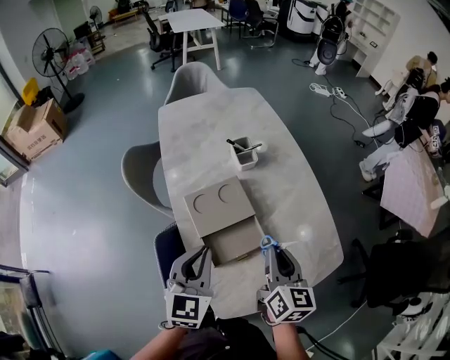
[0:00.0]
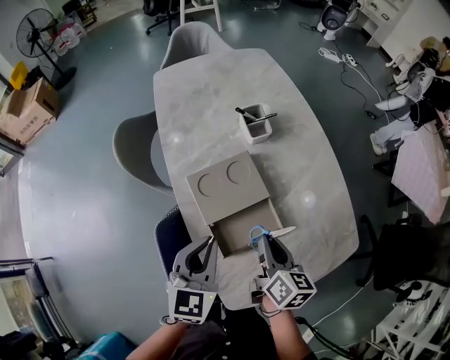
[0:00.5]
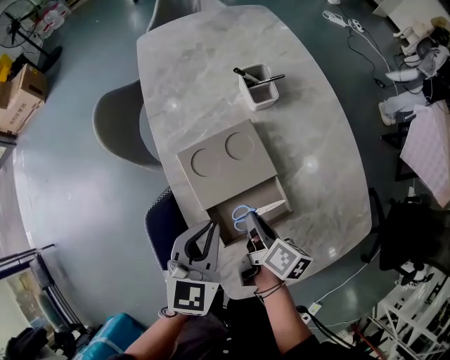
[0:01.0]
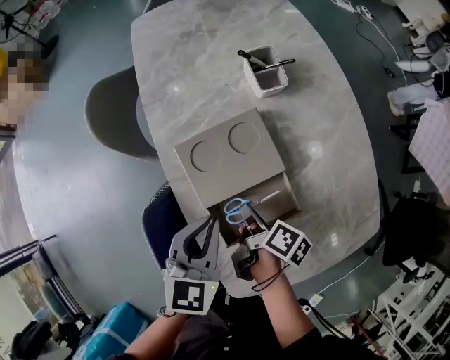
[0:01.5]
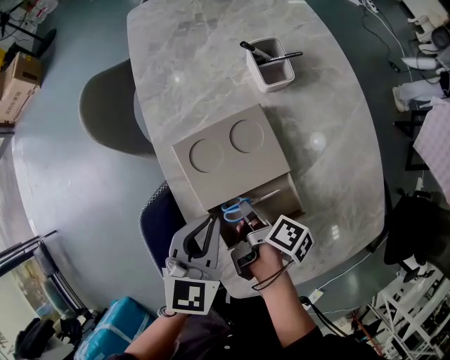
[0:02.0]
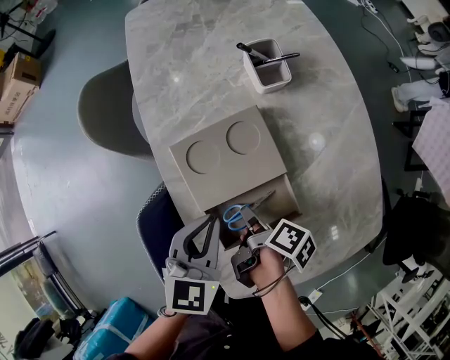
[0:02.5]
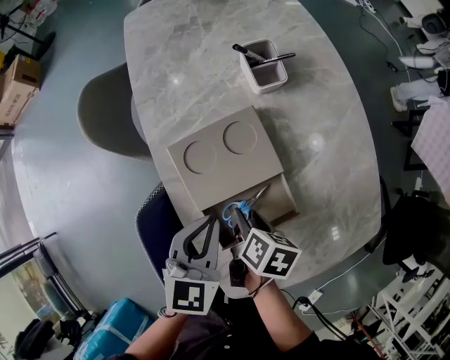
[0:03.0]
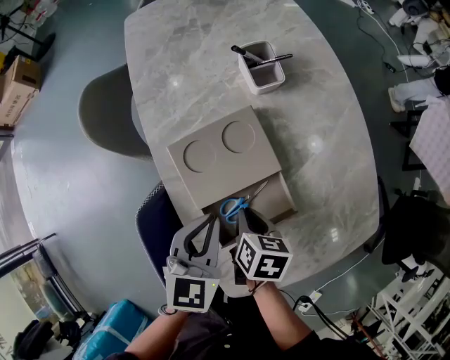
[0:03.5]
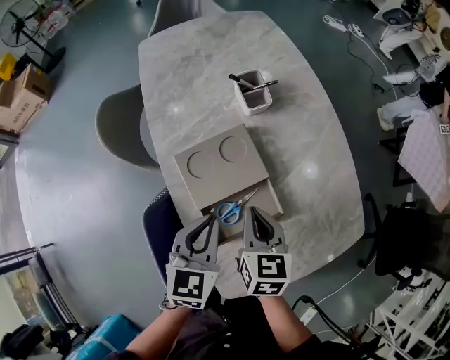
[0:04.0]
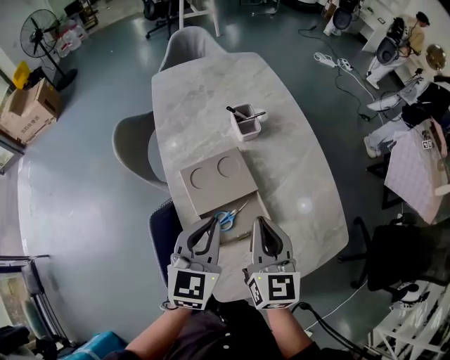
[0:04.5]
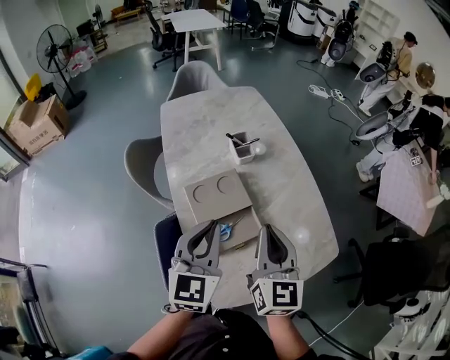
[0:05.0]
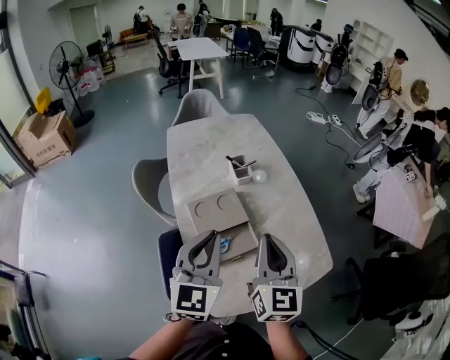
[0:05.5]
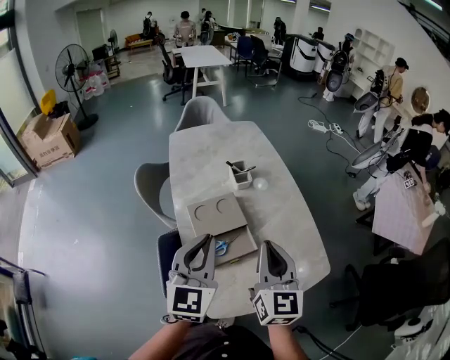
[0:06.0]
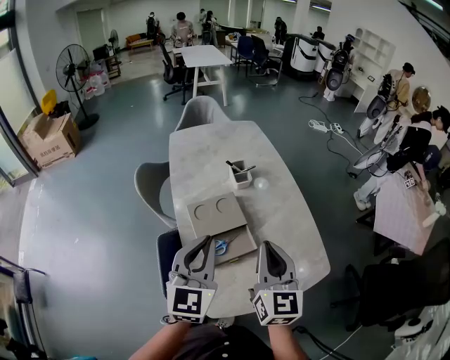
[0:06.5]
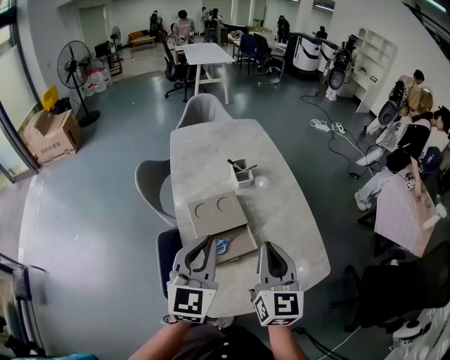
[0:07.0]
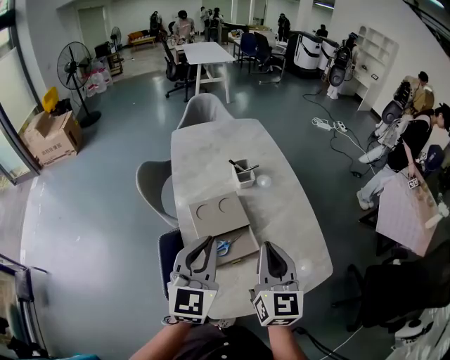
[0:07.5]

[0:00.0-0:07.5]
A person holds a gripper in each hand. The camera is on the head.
0:00.0 to 0:02.0: The left gripper heads downward and forward, covering some 20 cm. Meanwhile the right gripper shifts approximately 30 cm downward and to the left, and rolls clockwise, seen from behind, by approximately 60 degrees.
0:02.0 to 0:04.0: The right gripper heads upward, covering some 15 cm, rolls counterclockwise, seen from behind, by about 70 degrees, and opens, then closes once more. The left gripper ends up roughly 5 cm from where it was.
0:04.0 to 0:05.5: Both grippers move upward, approximately 25 cm. The right gripper angles its fingers upward, by roughly 30 degrees. The left gripper swivels some 30 degrees.
0:05.5 to 0:07.5: There are only small adjustments of the grippers.

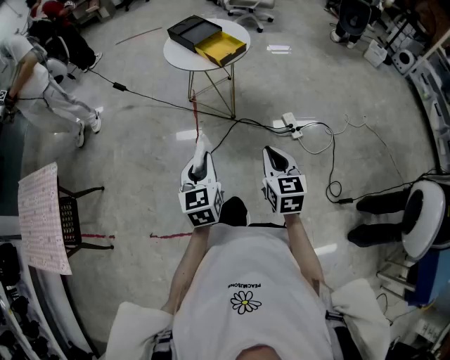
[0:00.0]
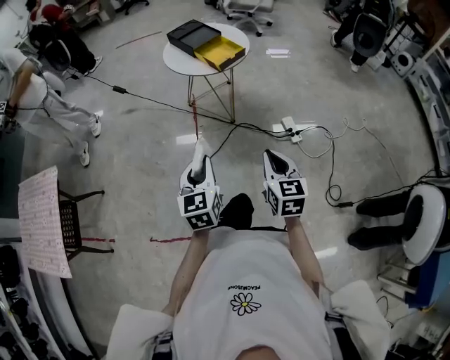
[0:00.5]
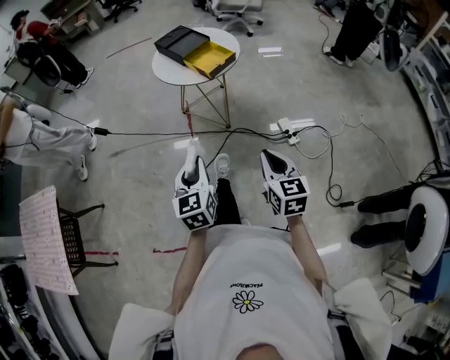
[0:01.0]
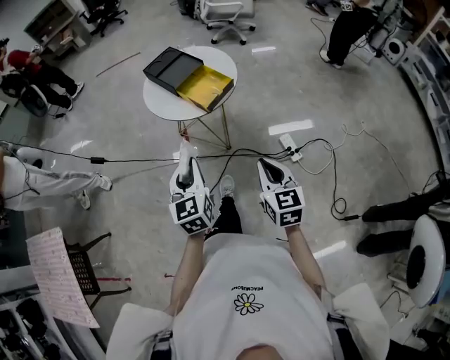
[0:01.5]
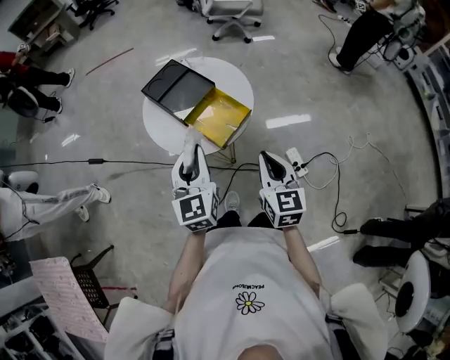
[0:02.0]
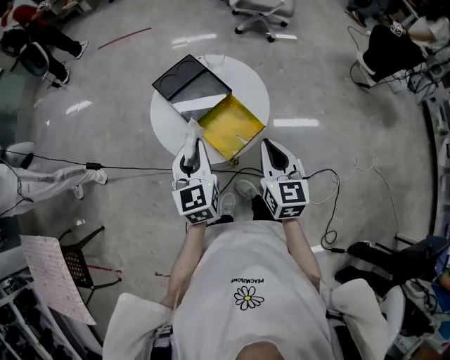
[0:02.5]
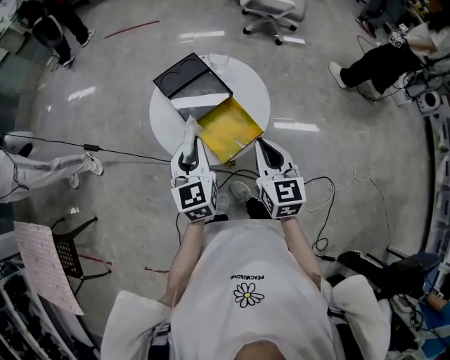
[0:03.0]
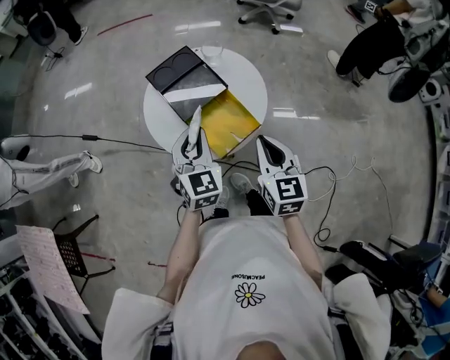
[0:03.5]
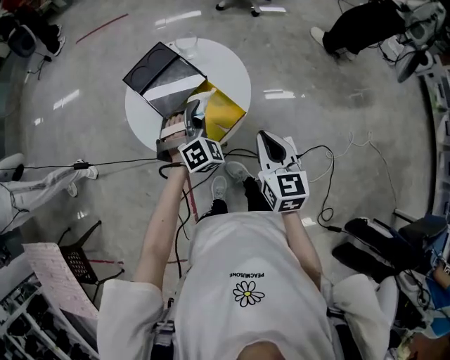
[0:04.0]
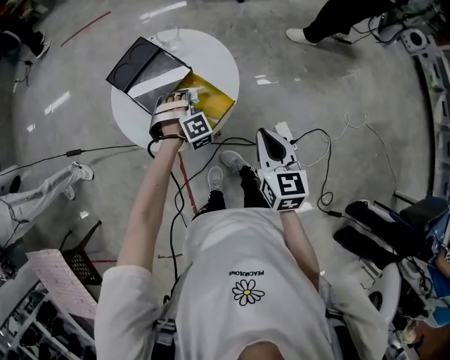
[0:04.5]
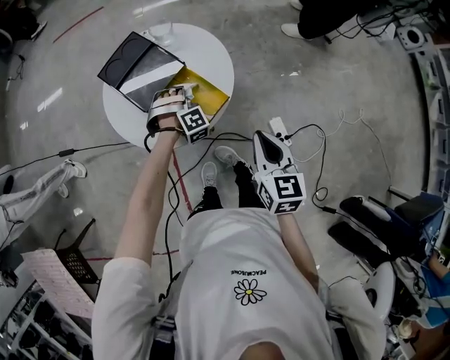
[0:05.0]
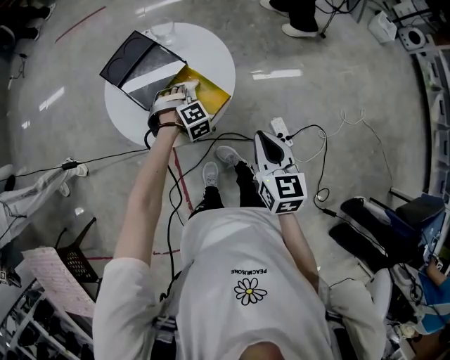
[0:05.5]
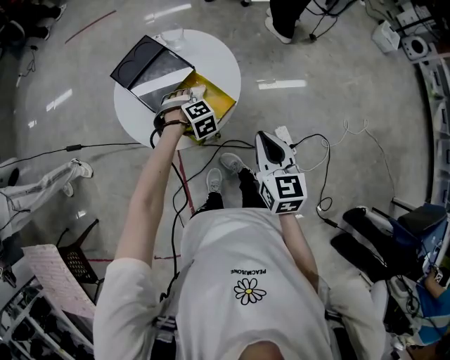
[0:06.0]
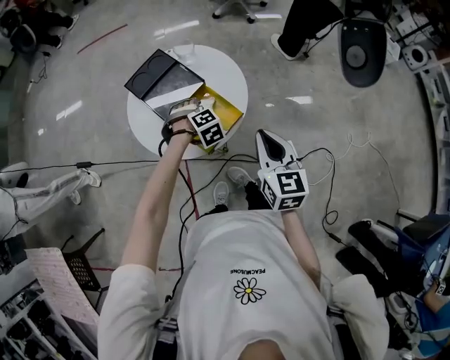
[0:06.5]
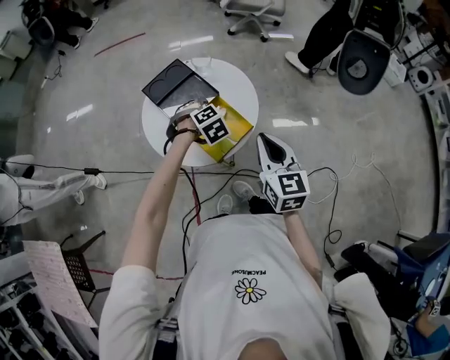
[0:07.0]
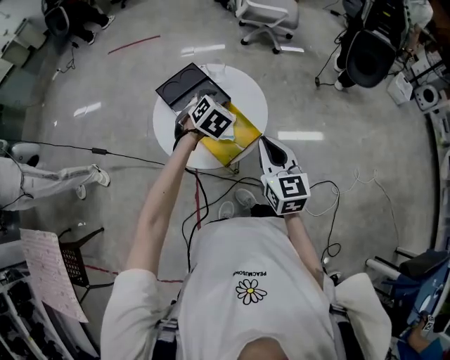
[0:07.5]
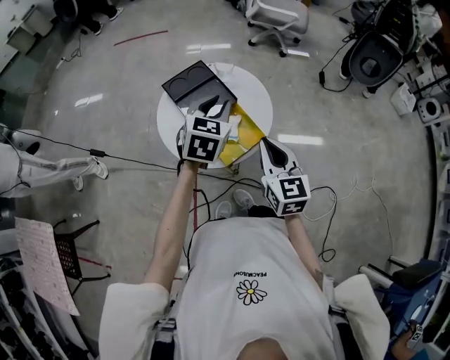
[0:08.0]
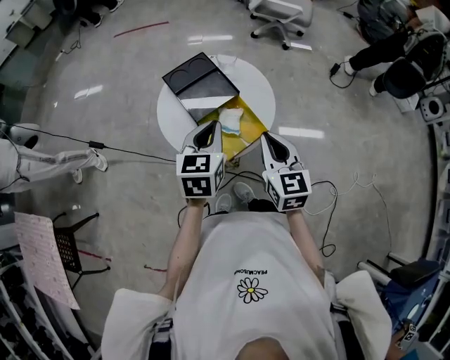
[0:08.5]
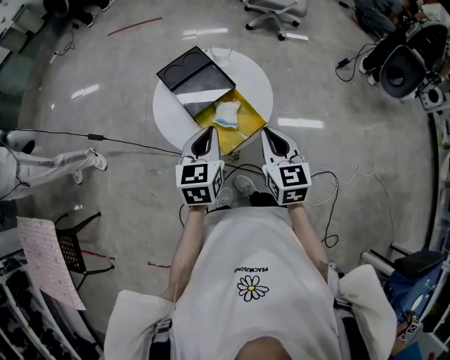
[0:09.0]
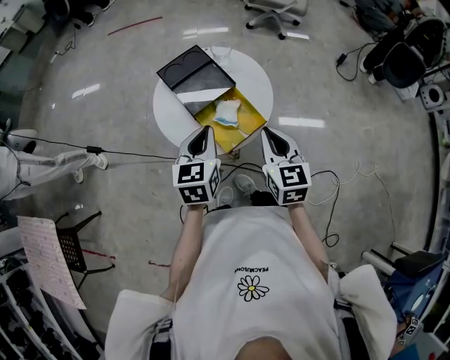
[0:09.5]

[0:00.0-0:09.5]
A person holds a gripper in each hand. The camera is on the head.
0:00.0 to 0:02.0: Both grippers are carried forward, about 40 cm.
0:02.0 to 0:04.0: The left gripper goes some 25 cm forward, downward and to the right, and twists some 60 degrees clockwise, seen from behind, while the right gripper moves forward and to the right, about 15 cm.
0:04.0 to 0:05.5: The right gripper moves roughly 5 cm. Meanwhile the left gripper travels downward by about 15 cm, swivels approximately 40 degrees, and opens.
0:05.5 to 0:07.5: The left gripper shifts about 20 cm upward, rotates around the line of its fingers by approximately 40 degrees, counterclockwise from behind, and opens, then closes again. The right gripper travels upward, forward and to the left by approximately 10 cm.
0:07.5 to 0:09.5: The left gripper shifts some 15 cm backward and to the left, rolls counterclockwise, seen from behind, by approximately 40 degrees, and closes its fingers.

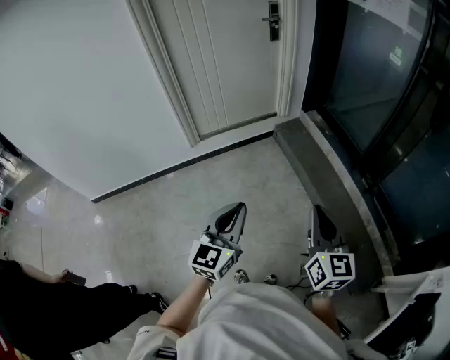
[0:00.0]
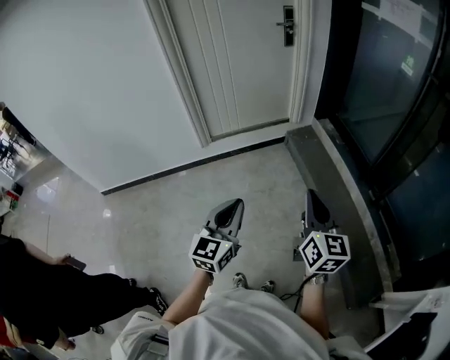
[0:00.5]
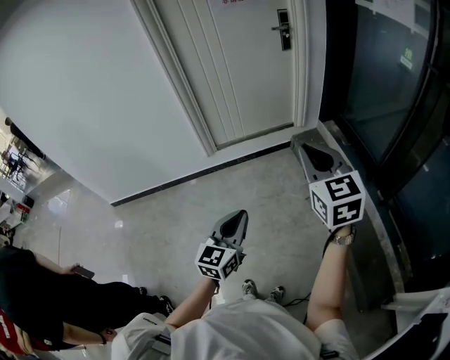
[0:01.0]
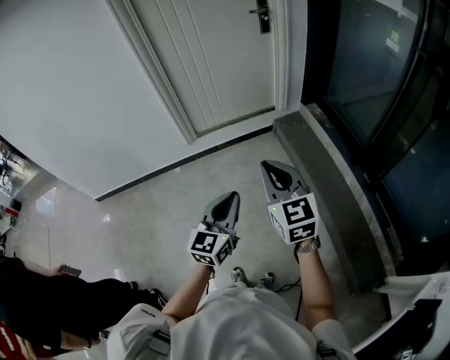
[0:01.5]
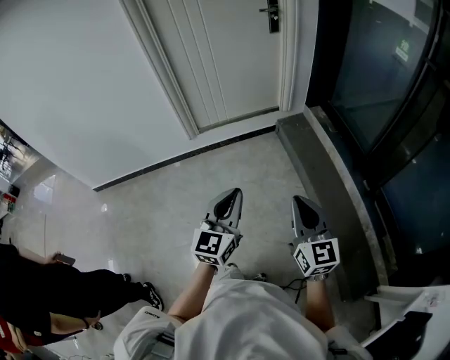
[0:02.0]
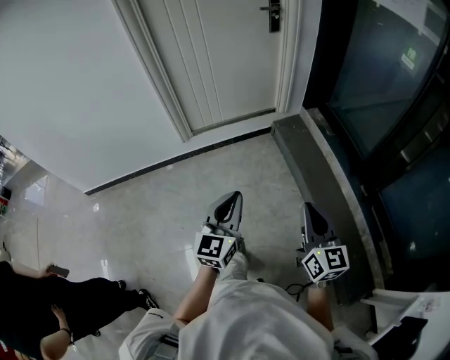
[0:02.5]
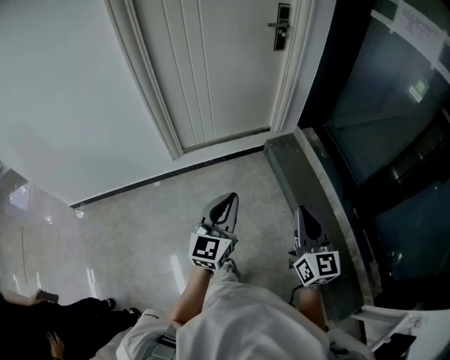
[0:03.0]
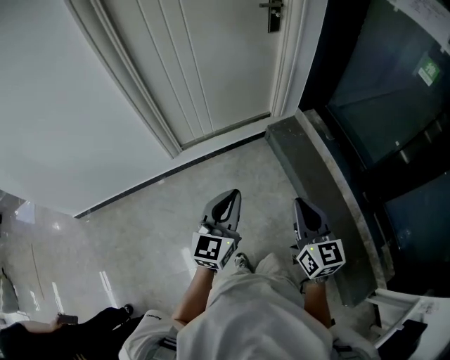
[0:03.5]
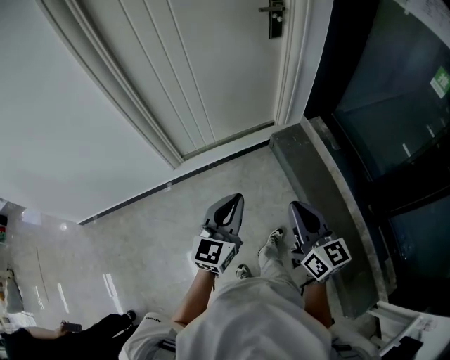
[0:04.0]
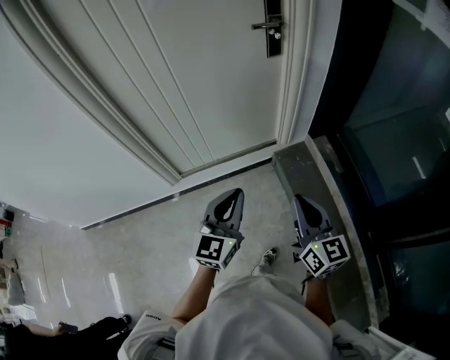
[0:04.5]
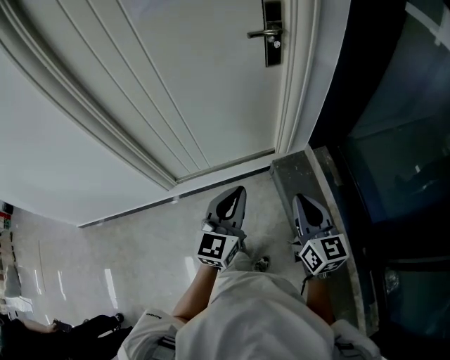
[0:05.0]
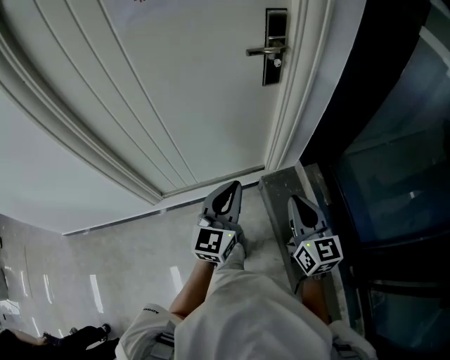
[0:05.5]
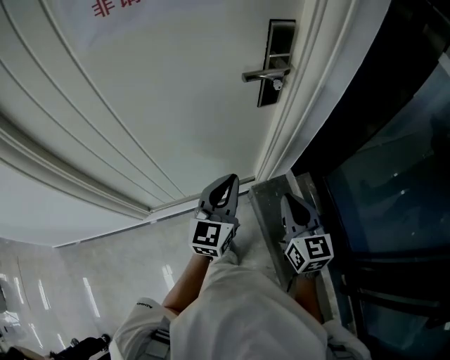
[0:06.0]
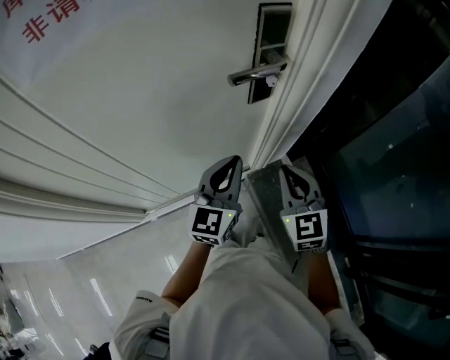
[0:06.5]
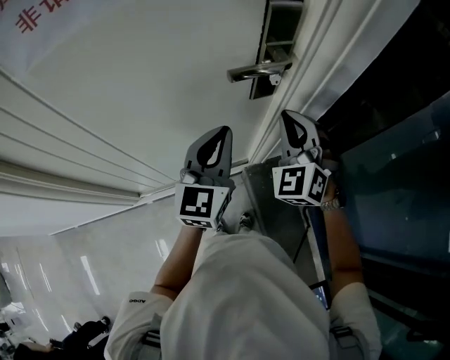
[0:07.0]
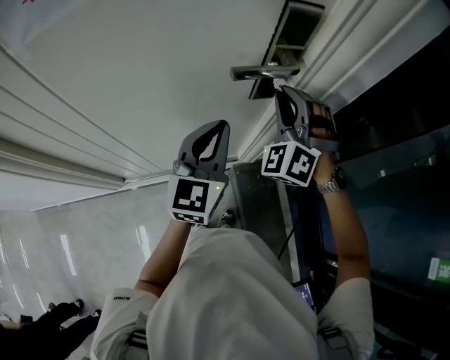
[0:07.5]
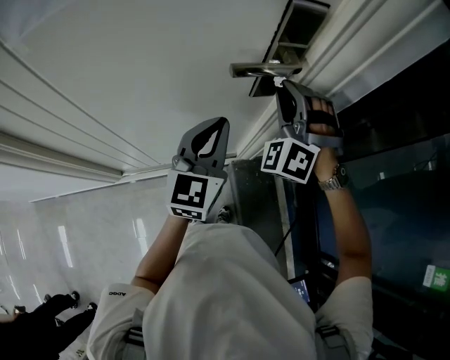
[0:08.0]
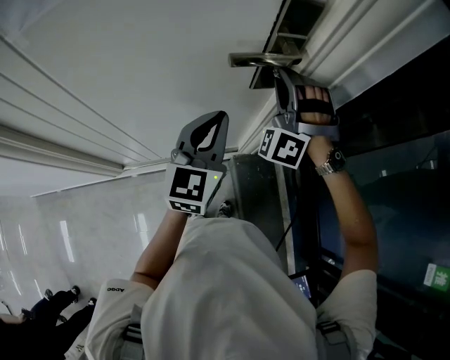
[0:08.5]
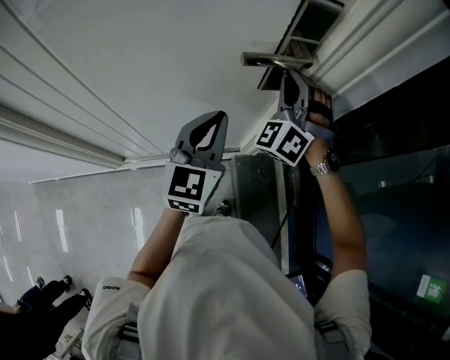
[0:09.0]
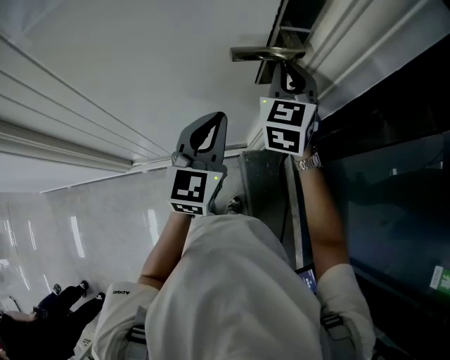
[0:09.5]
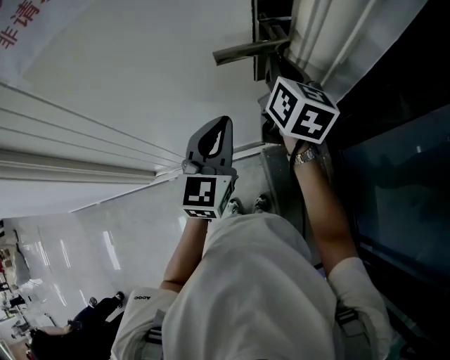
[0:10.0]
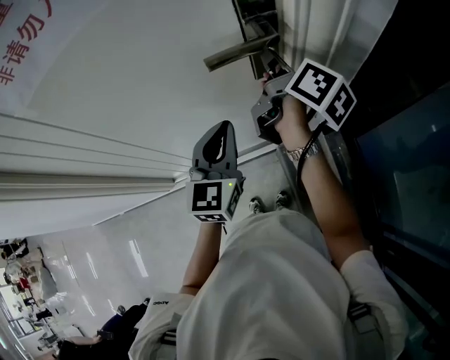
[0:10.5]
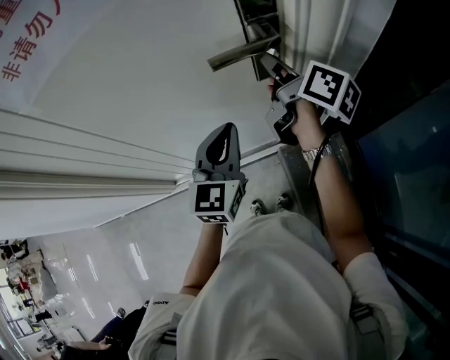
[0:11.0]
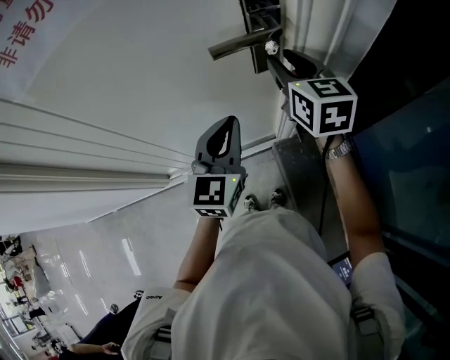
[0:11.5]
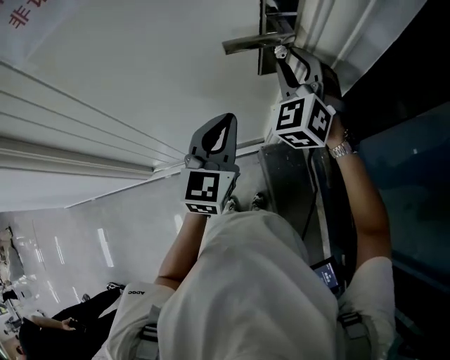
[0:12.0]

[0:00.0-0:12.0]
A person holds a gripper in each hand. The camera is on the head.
0:00.0 to 0:02.0: The right gripper heads downward and forward, covering roughly 10 cm. The left gripper travels to the right and forward by approximately 10 cm.
0:02.0 to 0:04.0: The grippers both shift forward by approximately 35 cm.
0:04.0 to 0:06.0: The pair of grippers is taken forward, some 50 cm.
0:06.0 to 0:08.0: The left gripper moves forward, approximately 15 cm, while the right gripper moves forward, roughly 30 cm, and rolls counterclockwise, seen from behind, by about 90 degrees.
0:08.0 to 0:10.0: The right gripper rotates around the line of its fingers by approximately 100 degrees, clockwise from behind.
0:10.0 to 0:12.0: The right gripper rotates around the line of its fingers by approximately 70 degrees, counterclockwise from behind, and opens its fingers.
